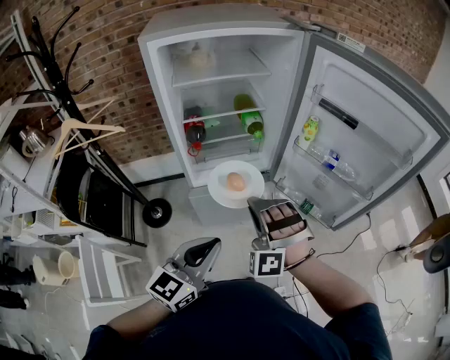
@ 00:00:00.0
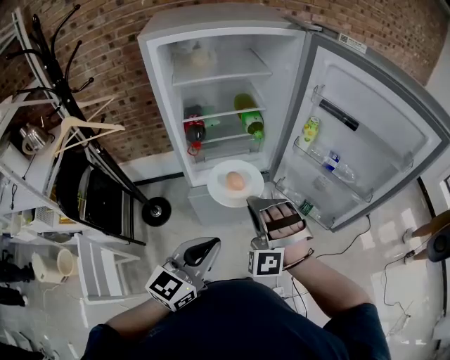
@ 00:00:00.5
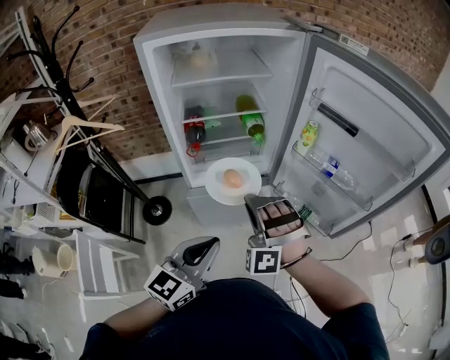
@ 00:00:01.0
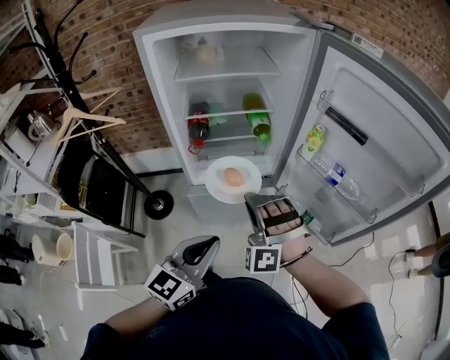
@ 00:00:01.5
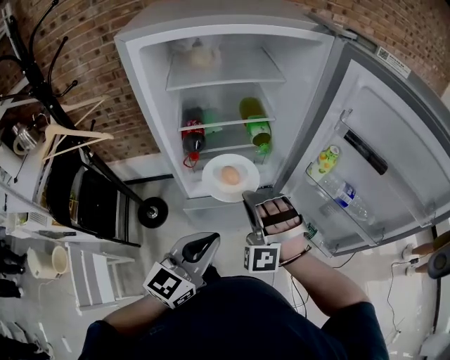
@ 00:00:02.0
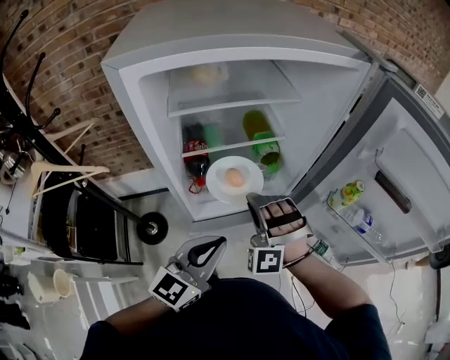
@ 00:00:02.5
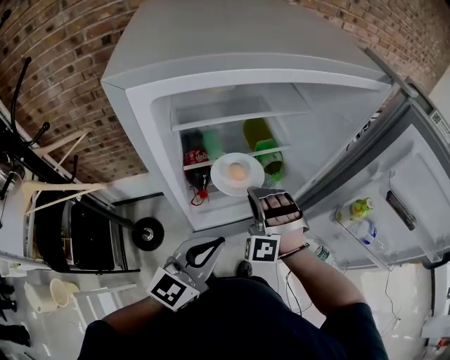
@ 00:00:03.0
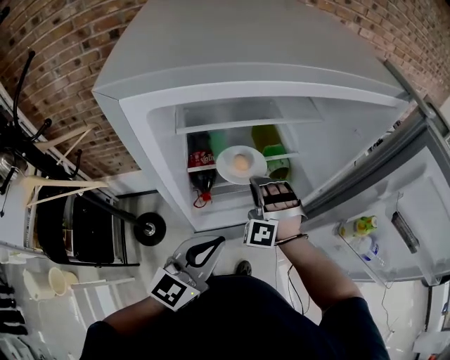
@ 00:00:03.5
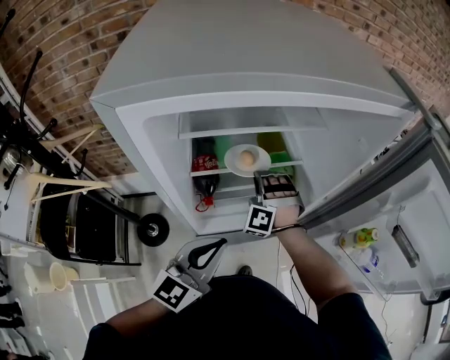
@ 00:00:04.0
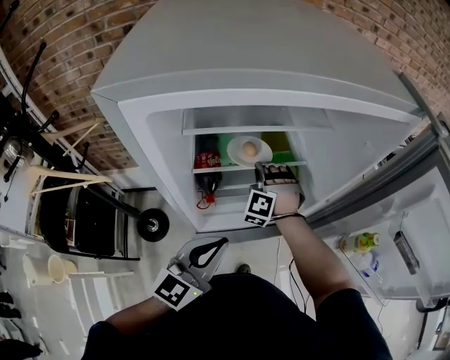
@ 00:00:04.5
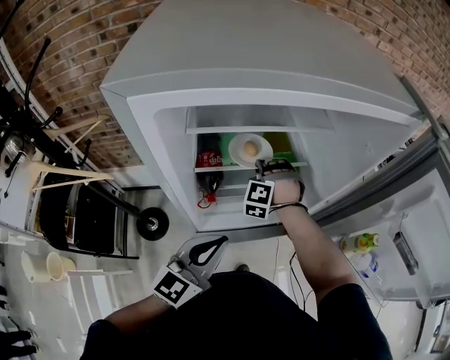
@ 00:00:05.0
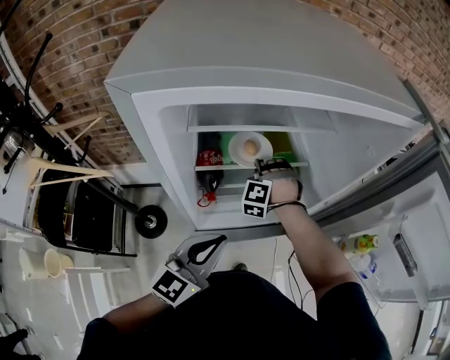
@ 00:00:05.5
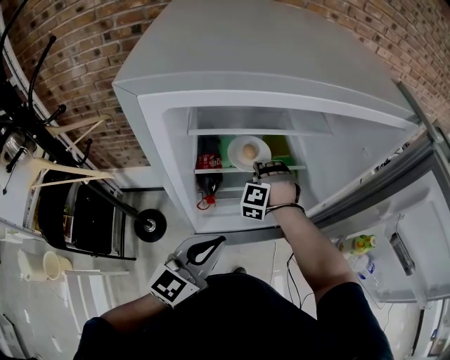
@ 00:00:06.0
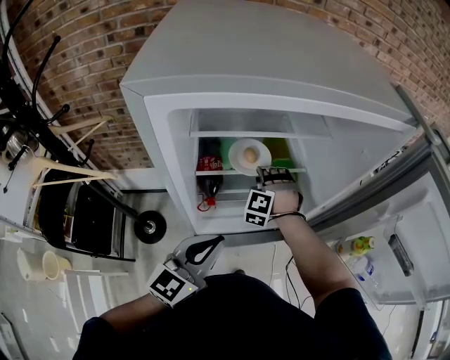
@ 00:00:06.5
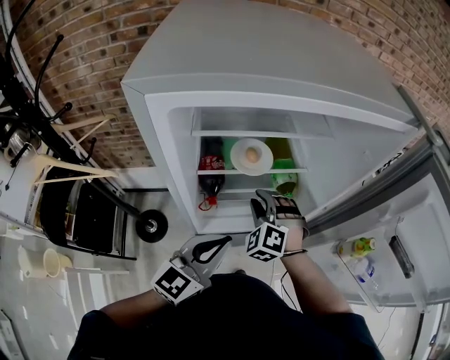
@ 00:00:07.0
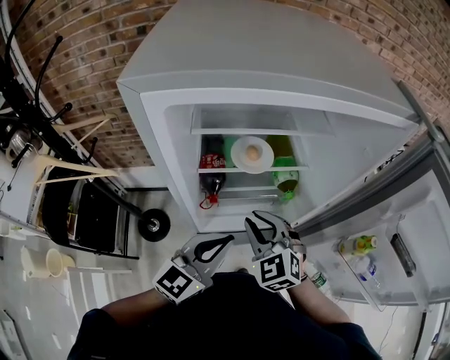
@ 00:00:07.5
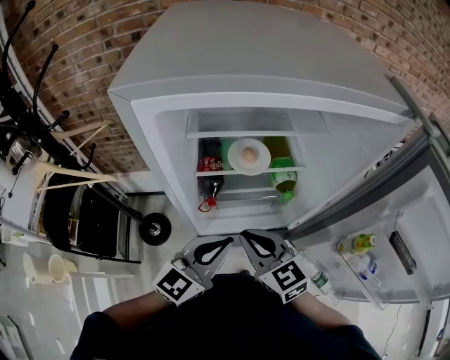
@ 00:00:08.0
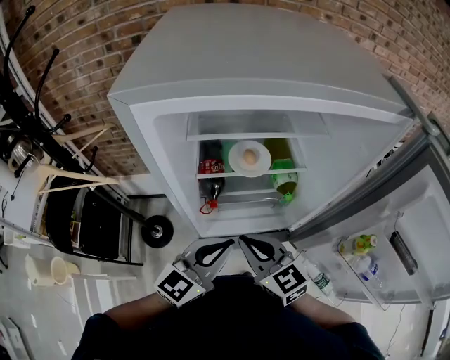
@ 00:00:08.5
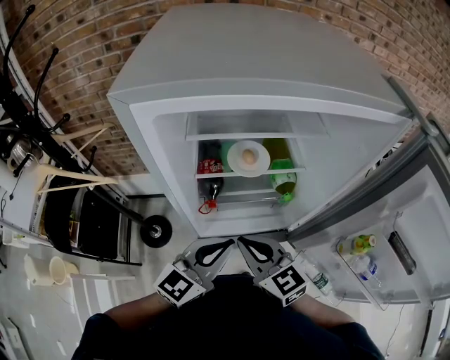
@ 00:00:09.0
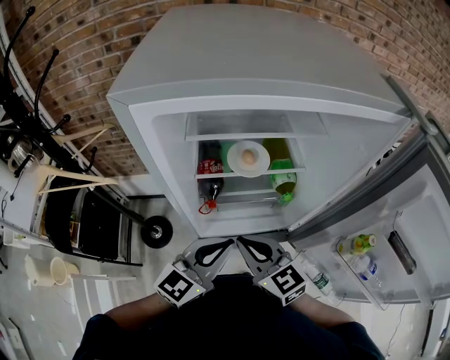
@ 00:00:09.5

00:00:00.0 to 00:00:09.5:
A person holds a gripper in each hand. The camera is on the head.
00:00:00.0 to 00:00:02.0: The left gripper changes place by about 15 cm.
00:00:02.0 to 00:00:04.0: The left gripper shifts by about 20 cm.

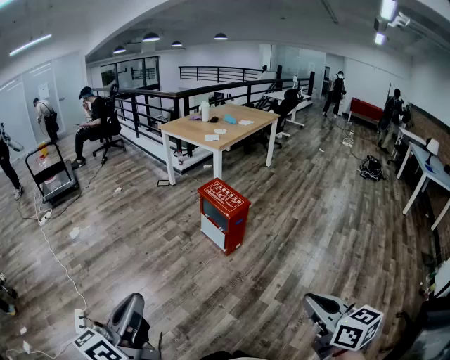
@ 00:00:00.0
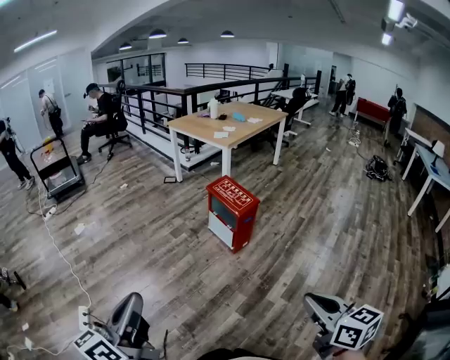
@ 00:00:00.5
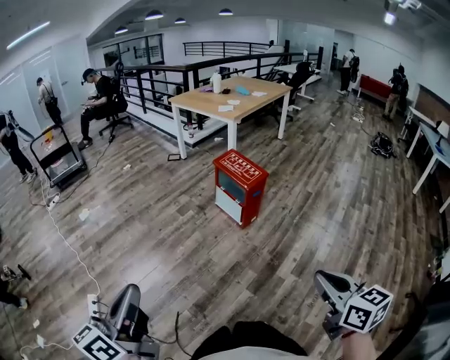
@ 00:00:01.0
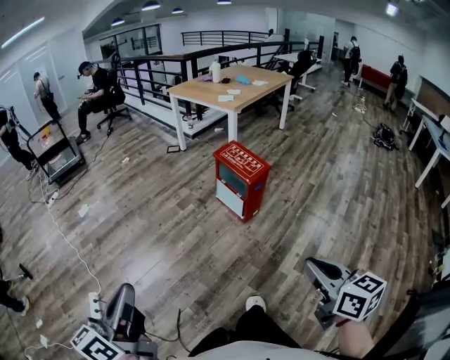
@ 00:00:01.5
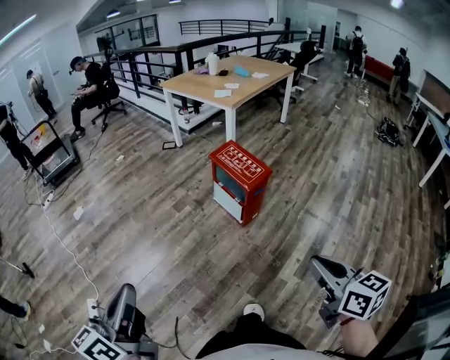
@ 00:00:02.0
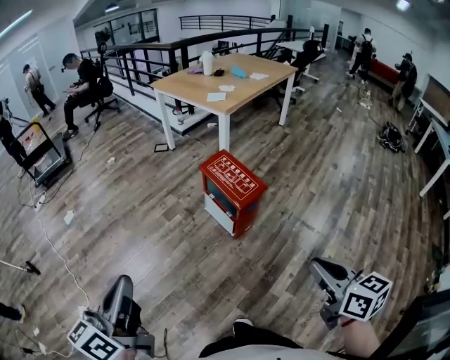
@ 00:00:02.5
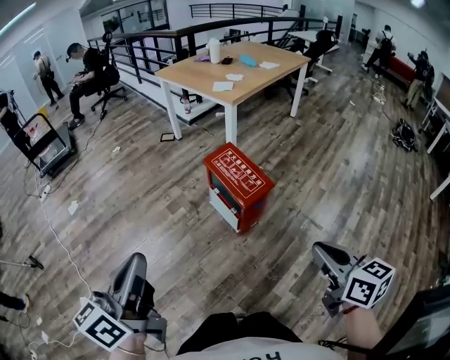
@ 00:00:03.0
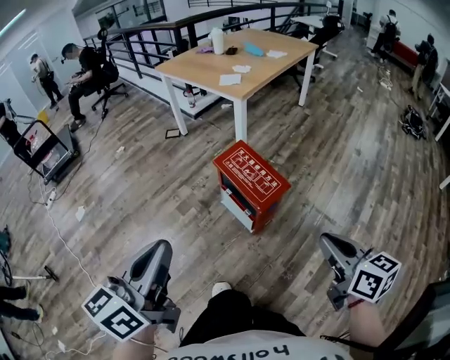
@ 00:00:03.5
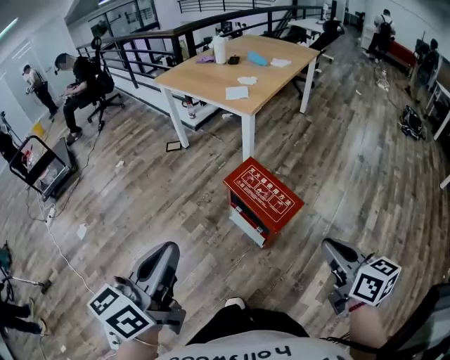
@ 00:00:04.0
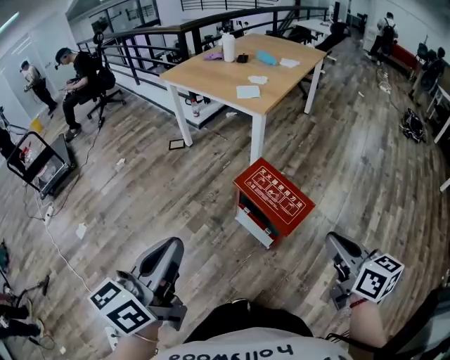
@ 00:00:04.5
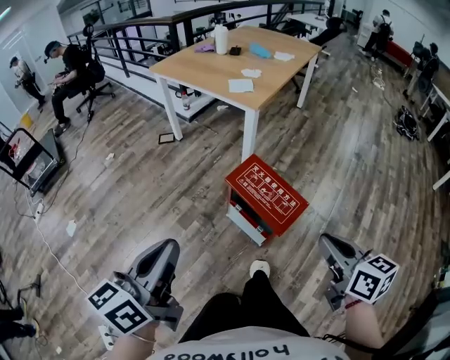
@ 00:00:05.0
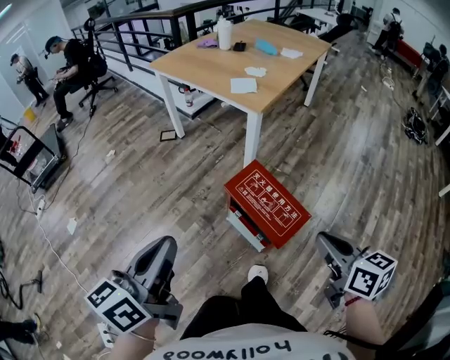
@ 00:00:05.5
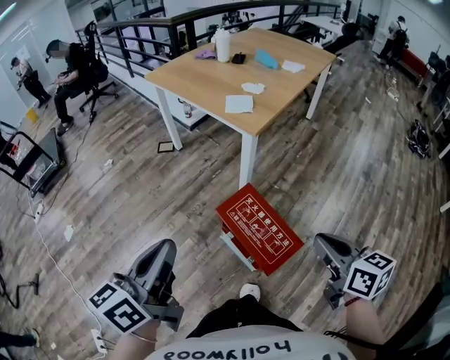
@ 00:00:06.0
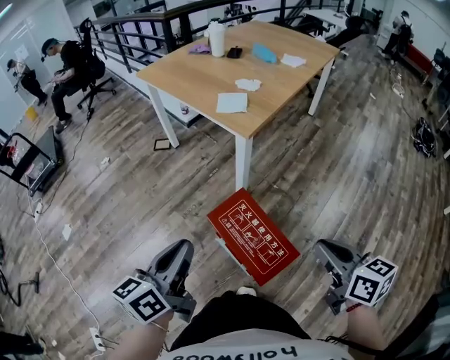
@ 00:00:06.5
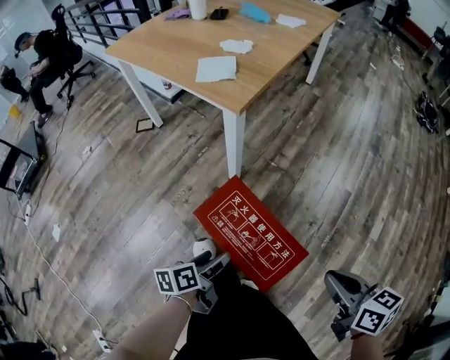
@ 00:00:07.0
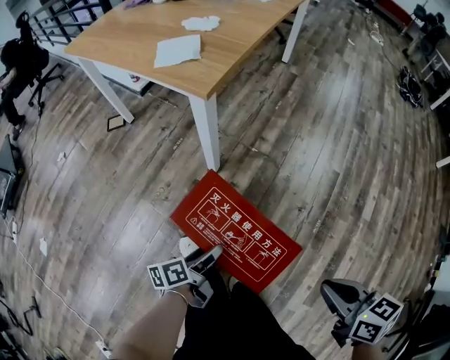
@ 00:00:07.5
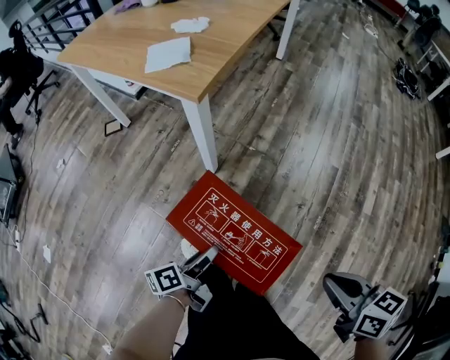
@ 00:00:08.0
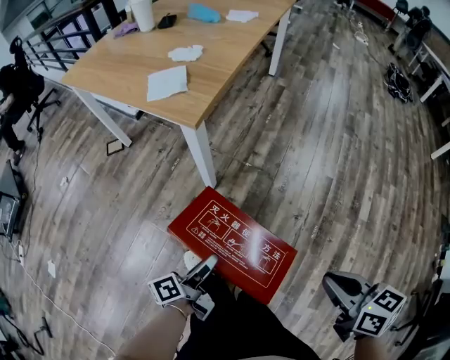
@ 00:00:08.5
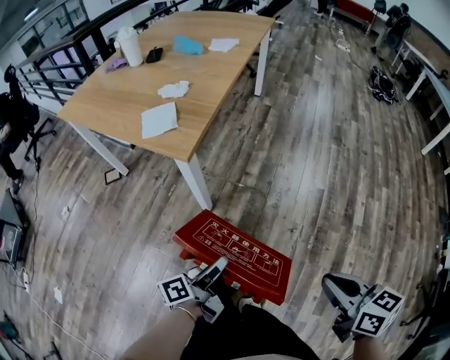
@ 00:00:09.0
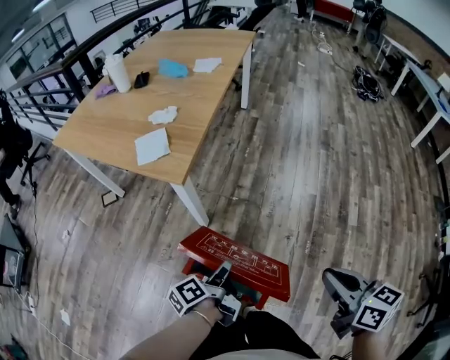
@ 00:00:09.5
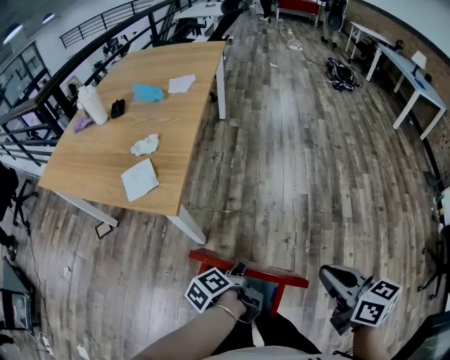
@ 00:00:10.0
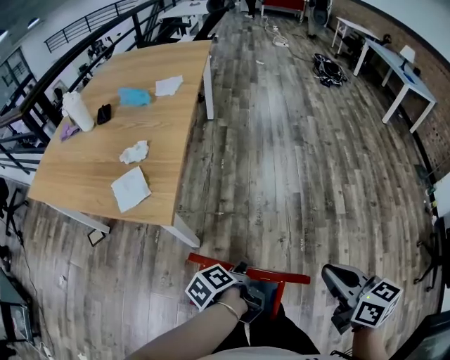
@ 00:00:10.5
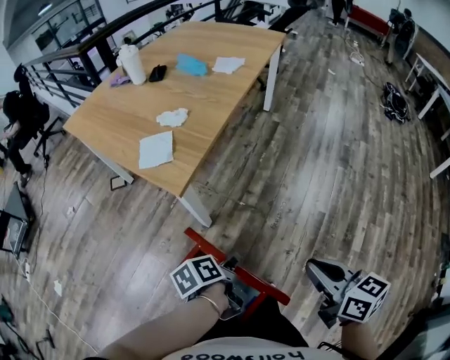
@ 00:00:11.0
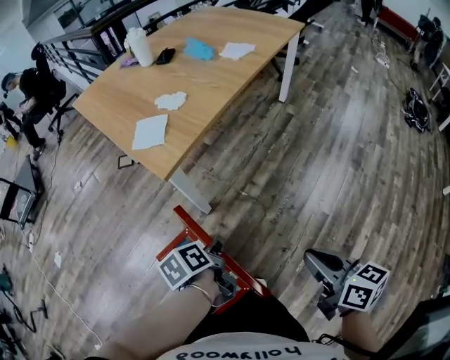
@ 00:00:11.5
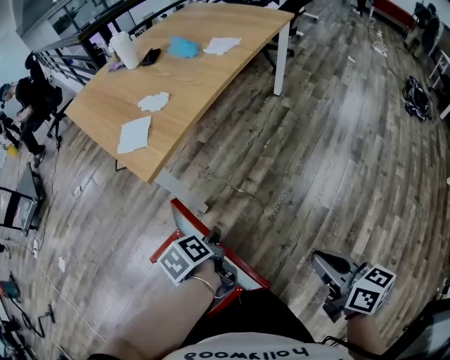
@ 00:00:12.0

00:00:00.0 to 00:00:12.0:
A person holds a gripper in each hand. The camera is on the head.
00:00:00.0 to 00:00:02.0: The left gripper goes roughly 15 cm forward and to the left. The right gripper is displaced forward by approximately 20 cm.
00:00:02.0 to 00:00:04.0: Both grippers travel together forward, some 40 cm.
00:00:04.0 to 00:00:06.0: Both grippers travel together forward, roughly 20 cm.
00:00:06.0 to 00:00:08.0: The right gripper goes approximately 20 cm downward and to the right. Meanwhile the left gripper heads downward, covering roughly 40 cm, rotates some 50 degrees, and opens its fingers.
00:00:08.0 to 00:00:10.0: The left gripper goes roughly 20 cm upward, forward and to the right; the right gripper is displaced upward and forward by roughly 15 cm, and turns by approximately 30 degrees.
00:00:10.0 to 00:00:12.0: The left gripper shifts by roughly 10 cm, and swivels some 30 degrees; the right gripper changes place by about 20 cm, and changes its angle by roughly 30 degrees.

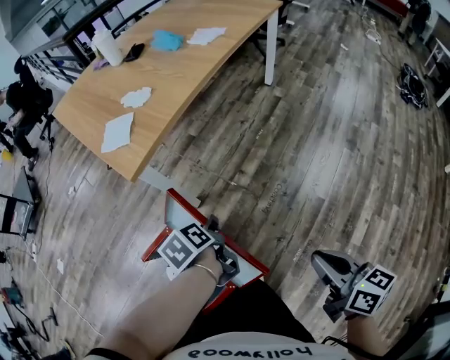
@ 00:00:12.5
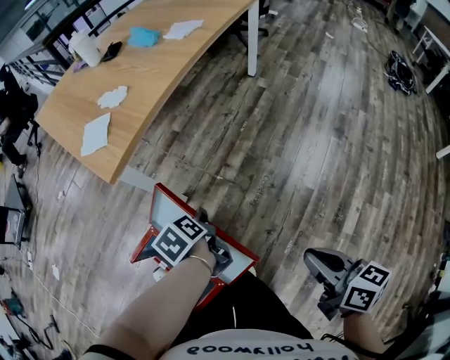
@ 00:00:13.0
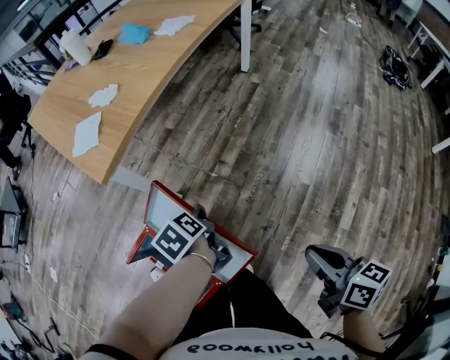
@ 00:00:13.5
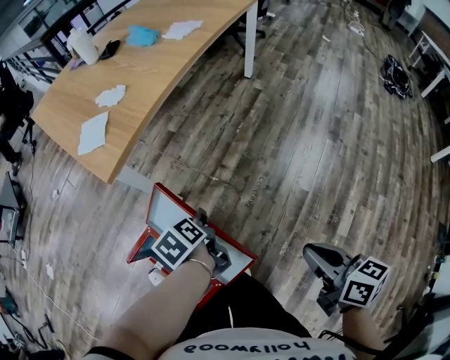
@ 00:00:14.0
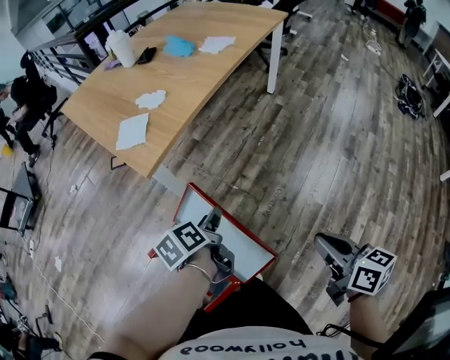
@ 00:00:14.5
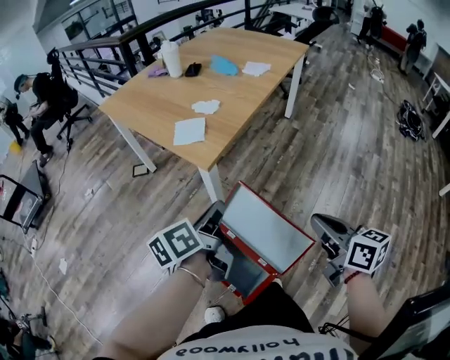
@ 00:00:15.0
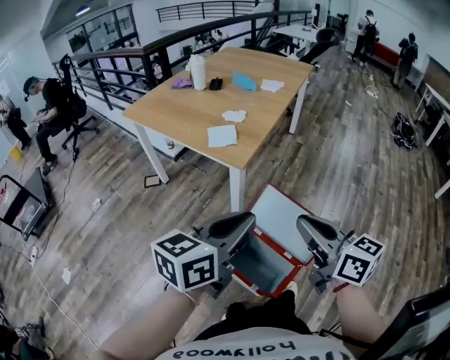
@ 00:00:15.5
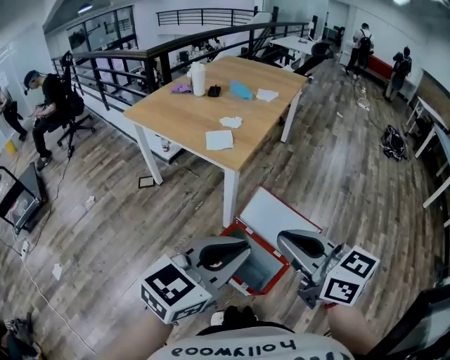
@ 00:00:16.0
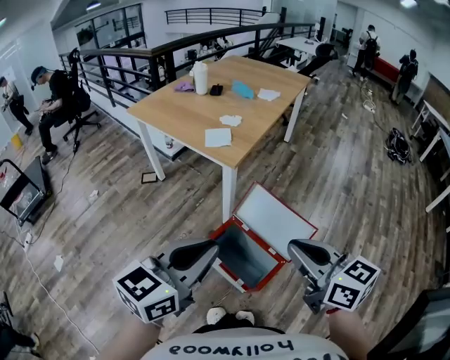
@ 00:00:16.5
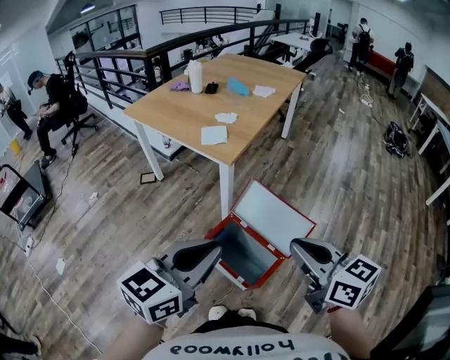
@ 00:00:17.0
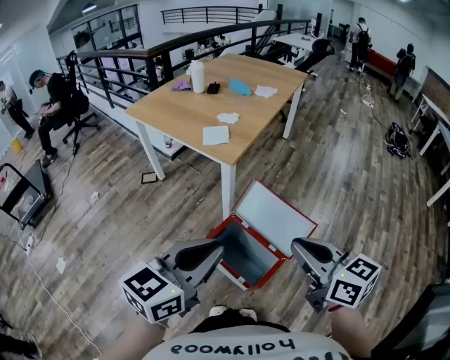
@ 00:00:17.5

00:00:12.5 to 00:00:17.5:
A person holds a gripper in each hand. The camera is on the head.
00:00:12.5 to 00:00:15.0: The left gripper heads upward and to the left, covering roughly 25 cm, and tips its fingers upward by about 40 degrees. The right gripper moves to the left and upward, approximately 15 cm.
00:00:15.0 to 00:00:17.5: The right gripper is displaced backward, to the left and upward by some 25 cm. The left gripper travels backward and upward by approximately 30 cm, and rolls clockwise, seen from behind, by some 50 degrees.
